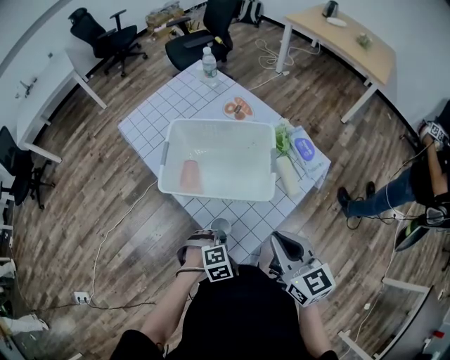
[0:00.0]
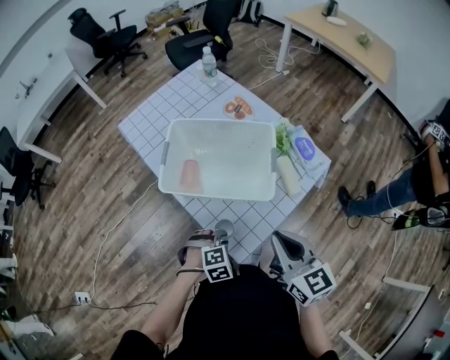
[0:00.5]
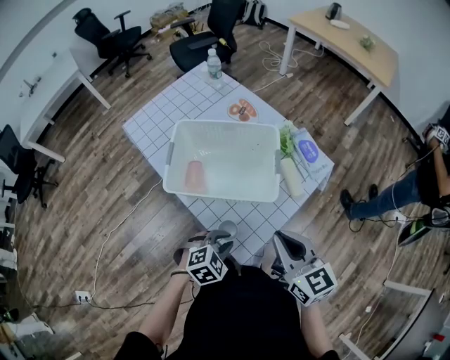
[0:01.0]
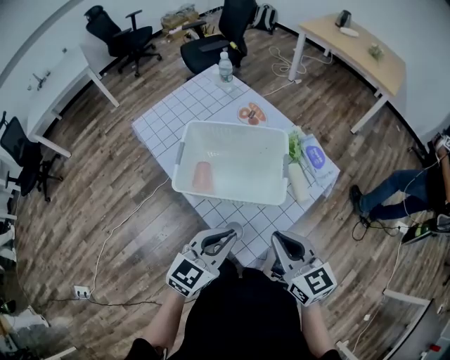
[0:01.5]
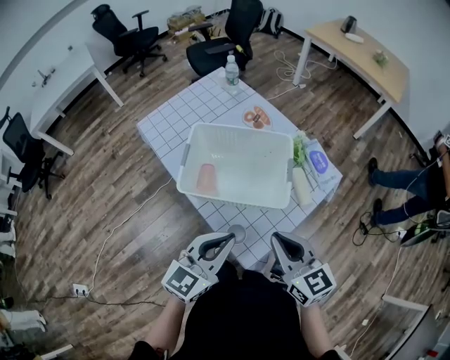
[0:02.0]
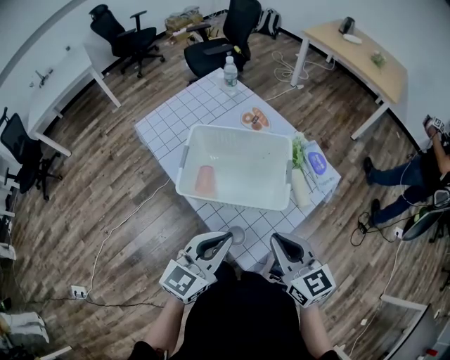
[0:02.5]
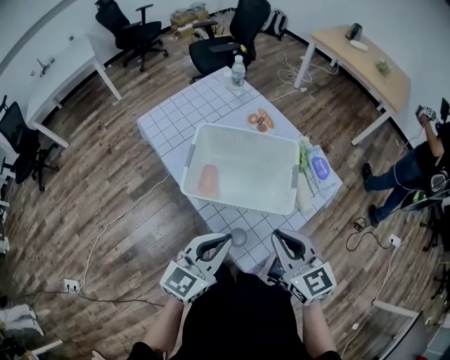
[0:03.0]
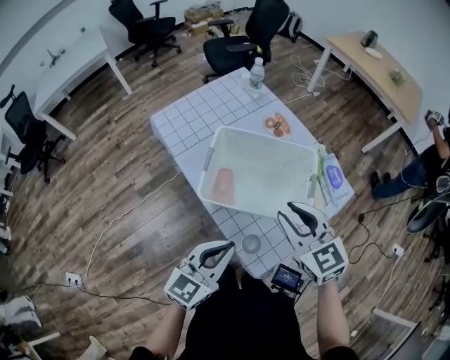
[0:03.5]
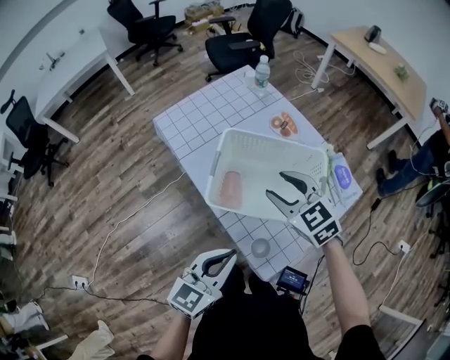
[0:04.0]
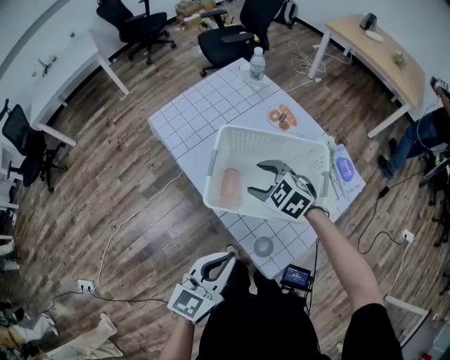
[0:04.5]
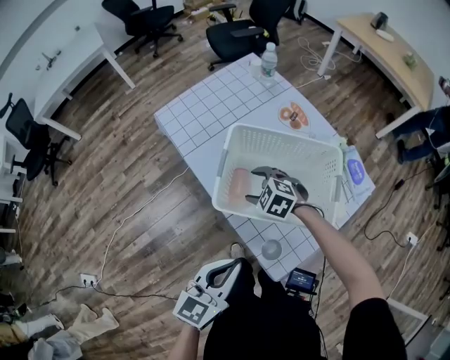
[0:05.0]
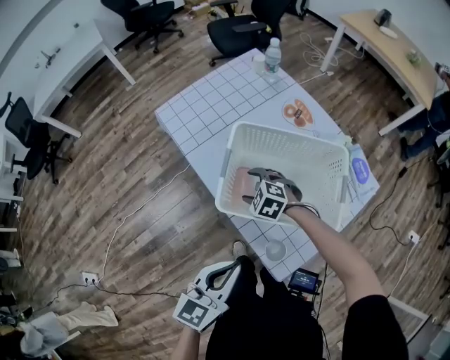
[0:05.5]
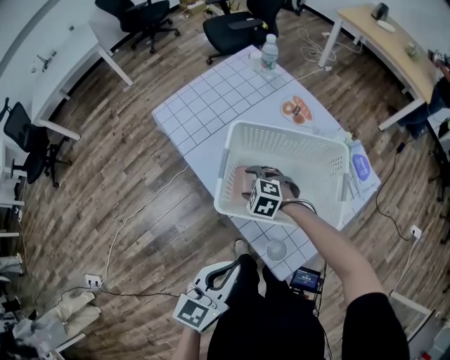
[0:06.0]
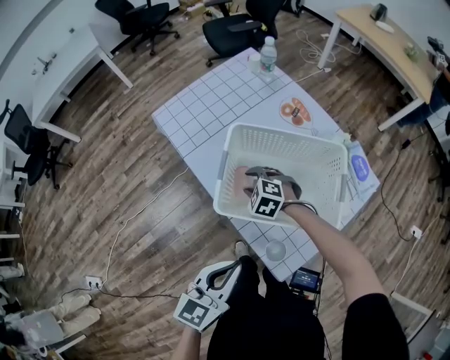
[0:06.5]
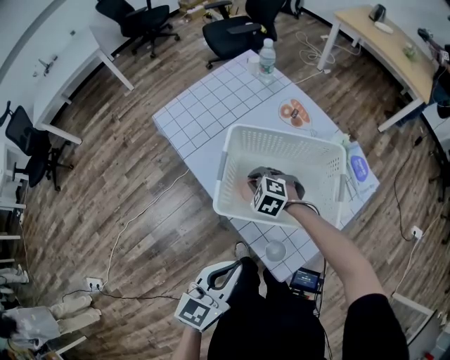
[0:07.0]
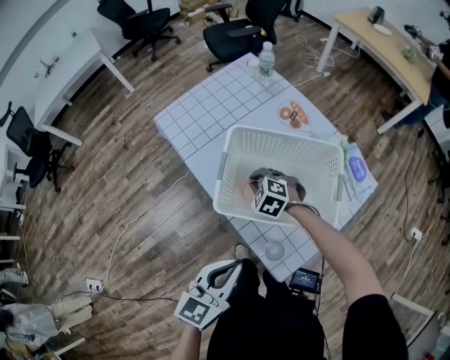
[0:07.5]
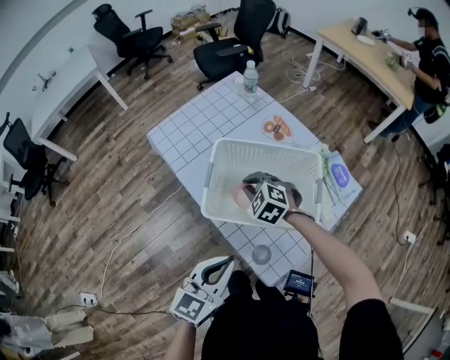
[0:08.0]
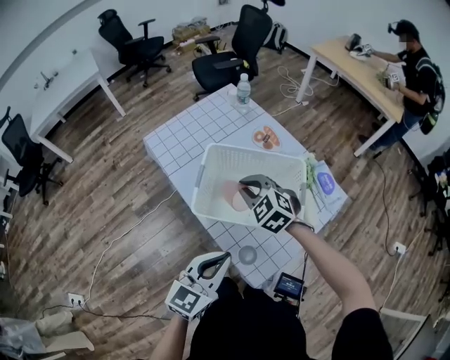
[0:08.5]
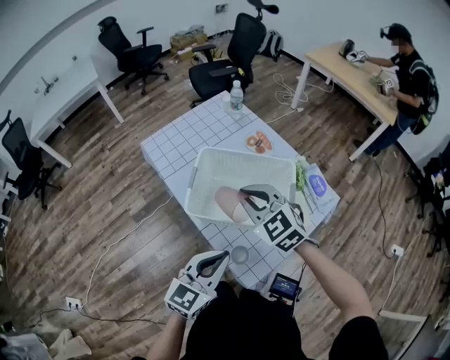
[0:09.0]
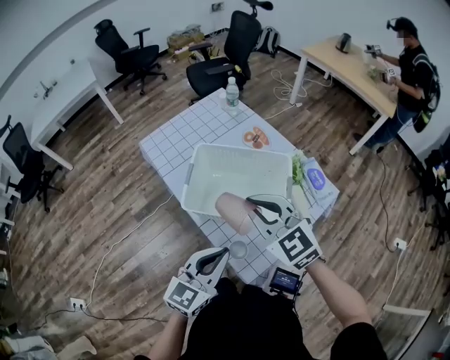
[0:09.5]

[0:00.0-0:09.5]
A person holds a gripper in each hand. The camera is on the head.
0:00.0 to 0:02.0: The left gripper moves upward, some 25 cm, and points its fingers some 60 degrees further upward.
0:02.0 to 0:04.0: The right gripper heads forward and to the left, covering approximately 20 cm, changes its angle by approximately 30 degrees, and opens, while the left gripper travels to the left by some 10 cm.
0:04.0 to 0:05.5: The right gripper shifts about 25 cm downward and to the left, and swivels approximately 30 degrees.
0:05.5 to 0:07.5: The right gripper closes.
0:07.5 to 0:09.5: The left gripper is displaced to the right and upward by roughly 10 cm, while the right gripper moves upward and backward, approximately 30 cm, and tips its fingers upward by approximately 40 degrees.

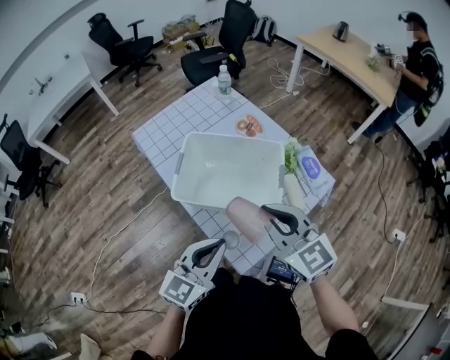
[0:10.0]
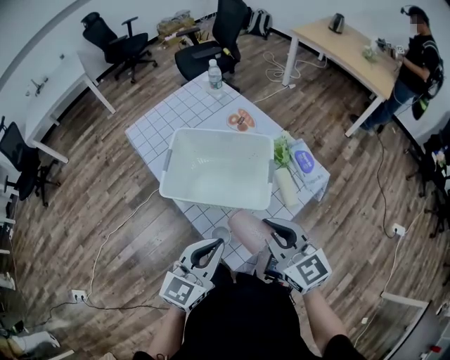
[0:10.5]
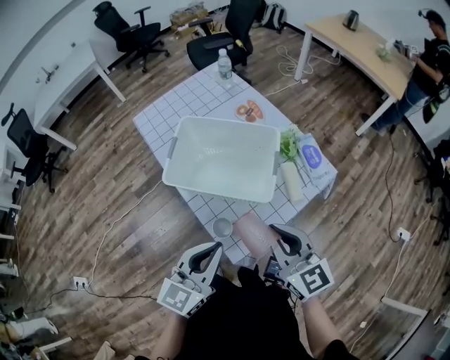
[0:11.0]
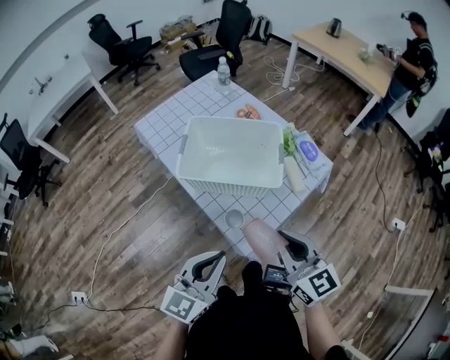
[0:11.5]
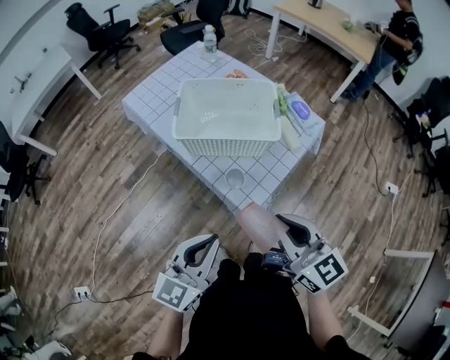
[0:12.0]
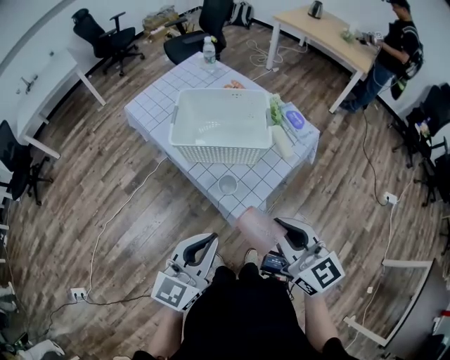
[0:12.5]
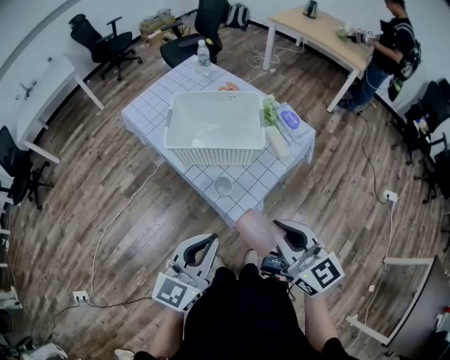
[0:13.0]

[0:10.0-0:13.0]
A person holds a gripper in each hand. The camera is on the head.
0:10.0 to 0:11.5: Both grippers move backward, roughly 15 cm.
0:11.5 to 0:13.0: The grippers both shift backward by roughly 10 cm.

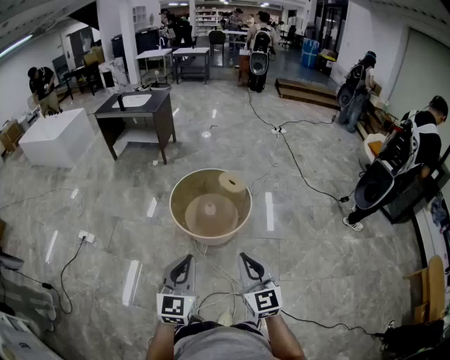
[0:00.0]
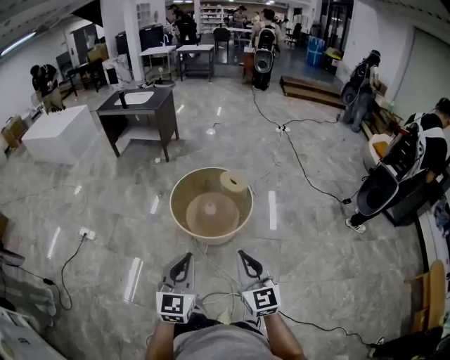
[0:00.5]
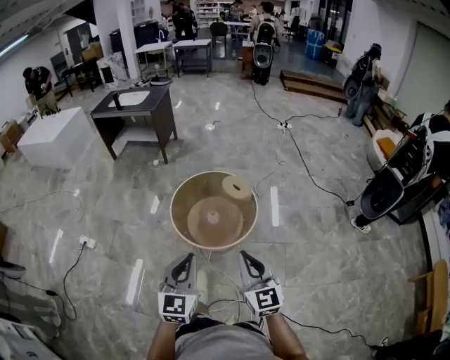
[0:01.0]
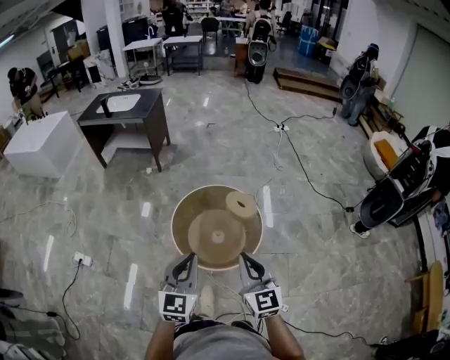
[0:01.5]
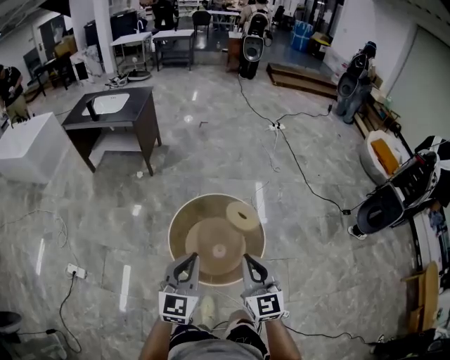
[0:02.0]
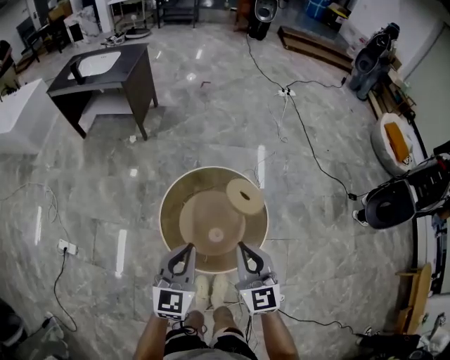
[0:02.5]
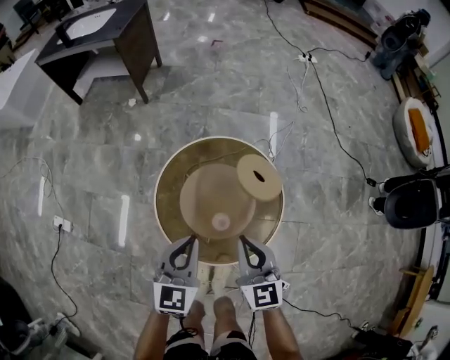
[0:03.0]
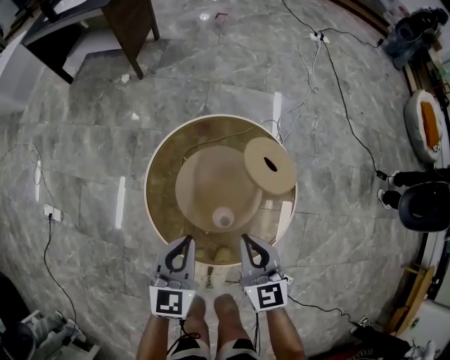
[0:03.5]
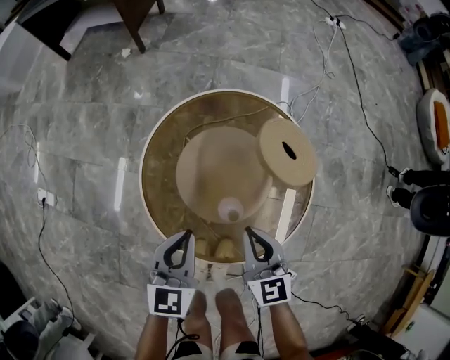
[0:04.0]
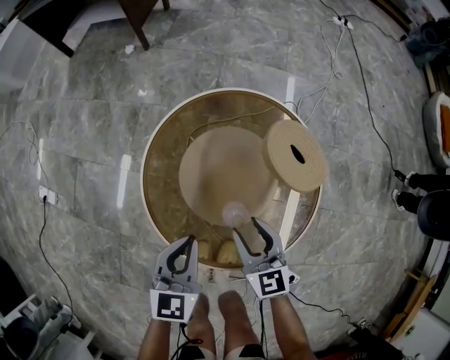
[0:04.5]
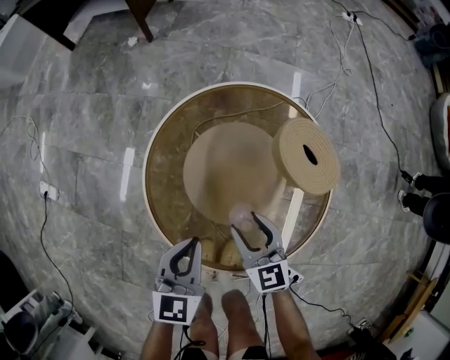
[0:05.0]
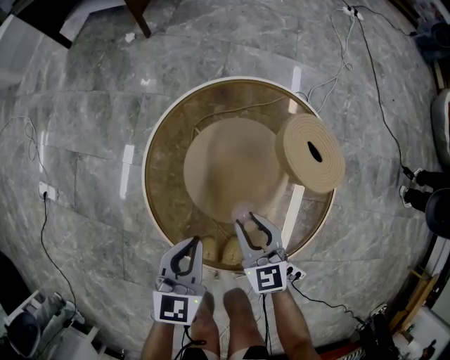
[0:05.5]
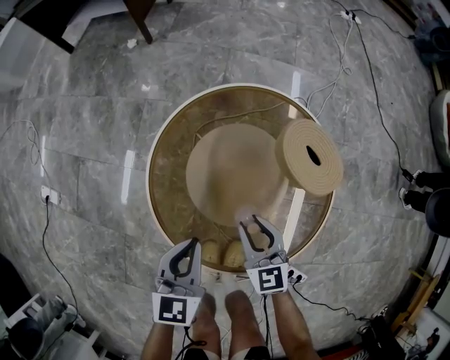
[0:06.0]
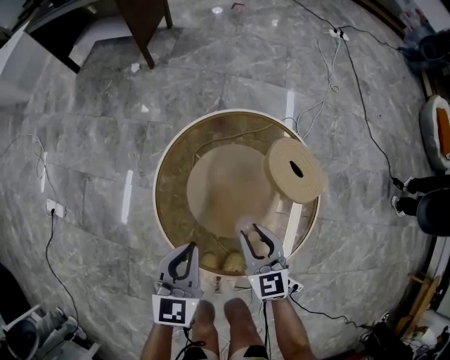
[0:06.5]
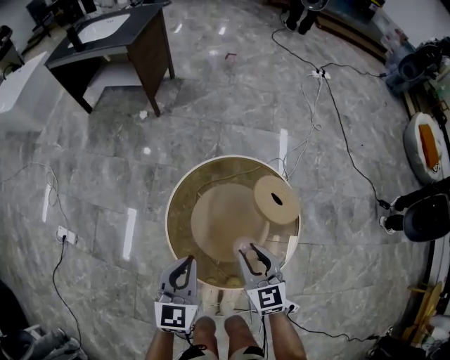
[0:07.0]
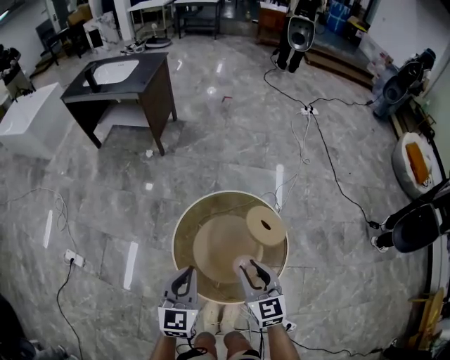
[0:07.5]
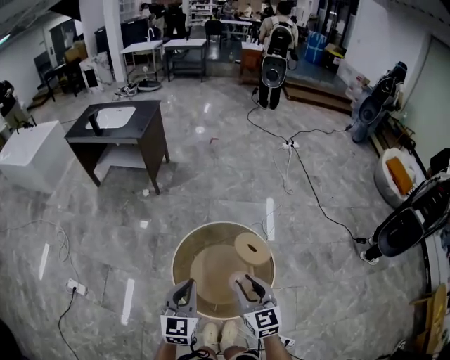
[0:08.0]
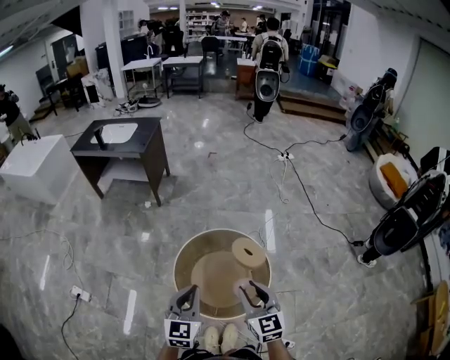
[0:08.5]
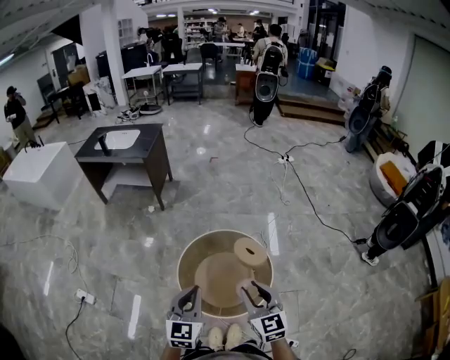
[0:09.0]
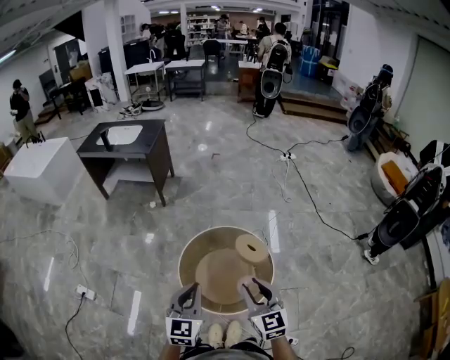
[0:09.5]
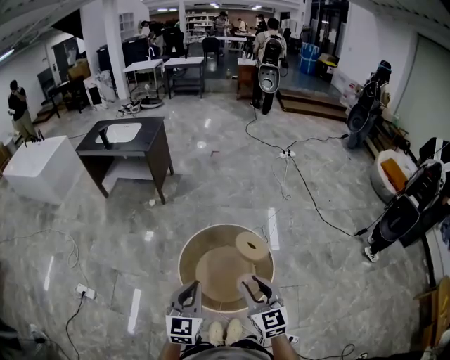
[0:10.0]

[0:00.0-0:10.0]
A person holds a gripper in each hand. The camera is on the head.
0:00.0 to 0:02.0: The two grippers travel together, forward, some 50 cm.
0:02.0 to 0:04.0: The grippers both shift downward by approximately 50 cm. The left gripper swivels roughly 30 degrees. Meanwhile the right gripper swivels roughly 20 degrees.
0:04.0 to 0:06.0: The right gripper moves downward, about 10 cm, and opens up. The left gripper moves downward, about 5 cm.
0:06.0 to 0:08.0: The two grippers go approximately 50 cm upward. The left gripper changes its angle by about 20 degrees.
0:08.0 to 0:10.0: The right gripper shifts approximately 15 cm backward and upward; the left gripper goes roughly 10 cm backward.

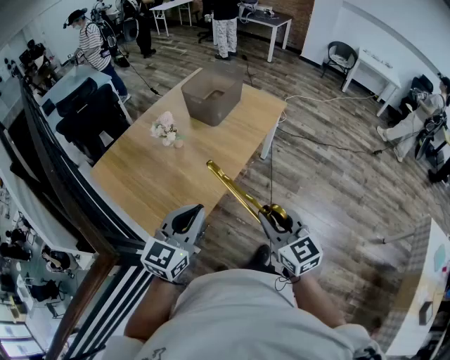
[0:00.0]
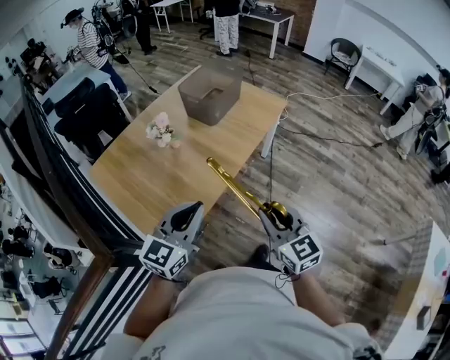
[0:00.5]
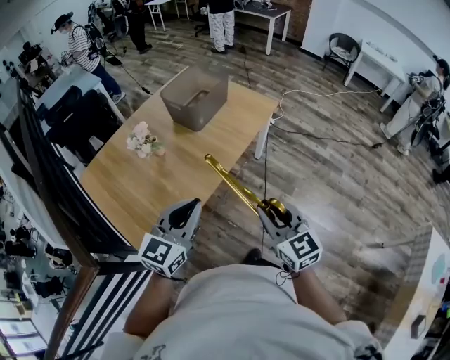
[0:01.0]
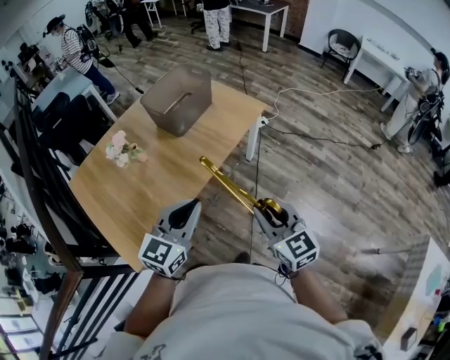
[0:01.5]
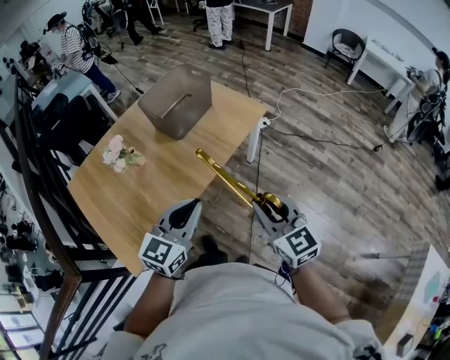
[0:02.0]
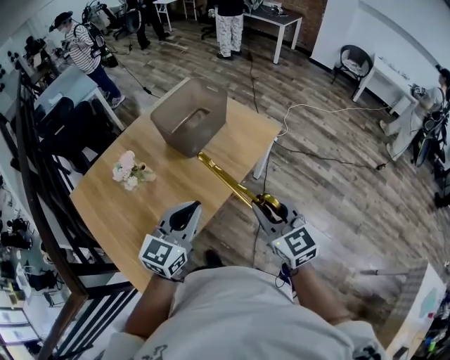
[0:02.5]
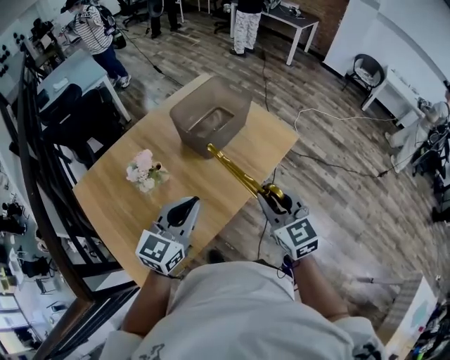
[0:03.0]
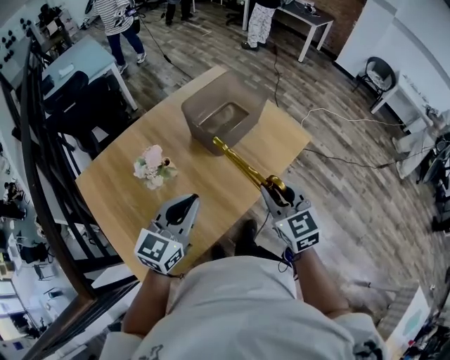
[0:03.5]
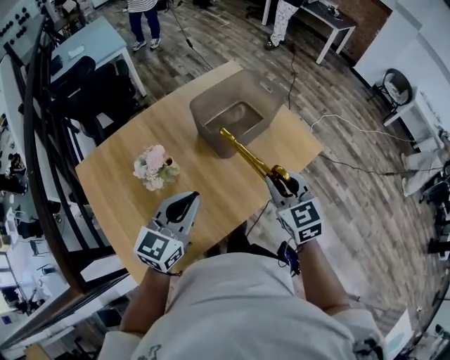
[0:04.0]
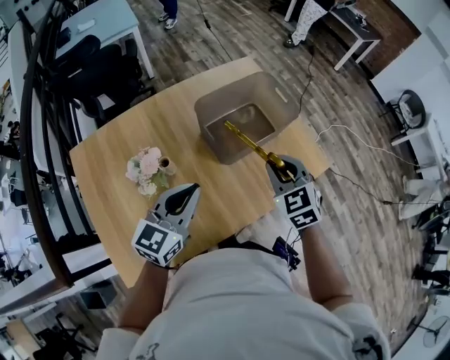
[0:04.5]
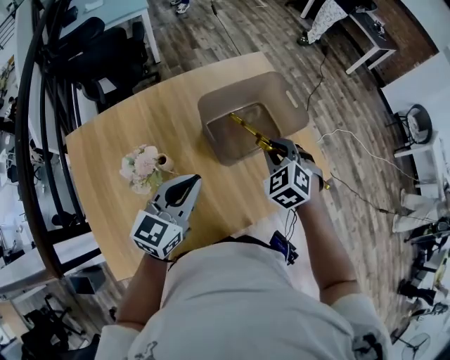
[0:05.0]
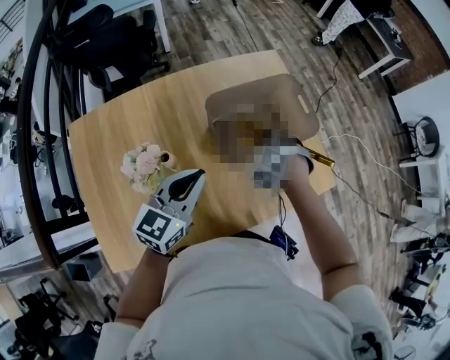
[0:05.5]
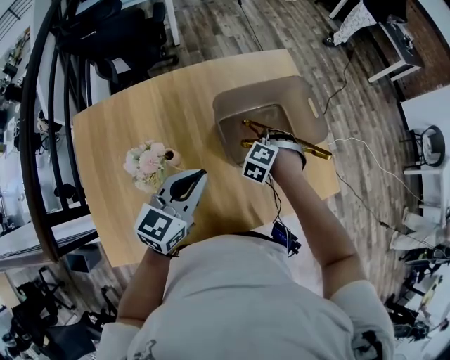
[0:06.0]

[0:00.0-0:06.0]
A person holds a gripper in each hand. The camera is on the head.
0:00.0 to 0:02.0: The right gripper is displaced forward and to the right by about 30 cm, while the left gripper shifts roughly 30 cm to the right and forward.
0:02.0 to 0:04.0: Both grippers travel together forward and to the left, about 30 cm.
0:04.0 to 0:06.0: The right gripper heads forward and downward, covering some 35 cm, and rotates around the line of its fingers by approximately 60 degrees, counterclockwise from behind, while the left gripper goes some 15 cm forward.
